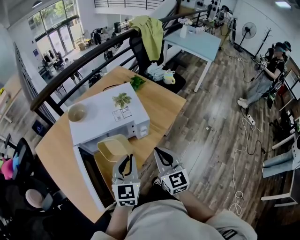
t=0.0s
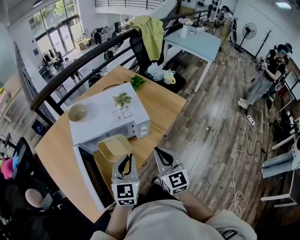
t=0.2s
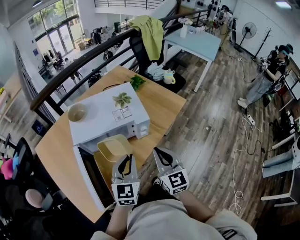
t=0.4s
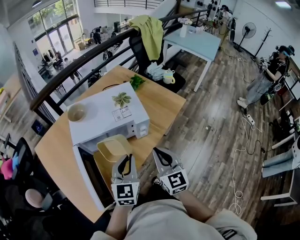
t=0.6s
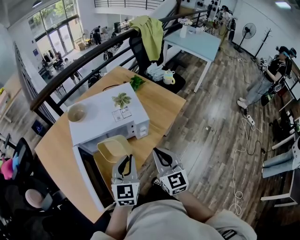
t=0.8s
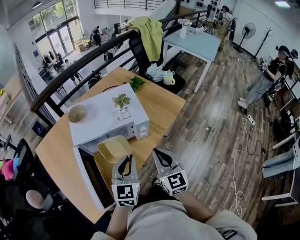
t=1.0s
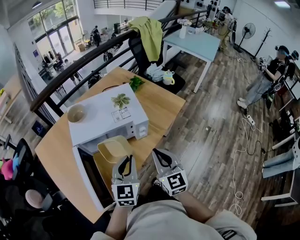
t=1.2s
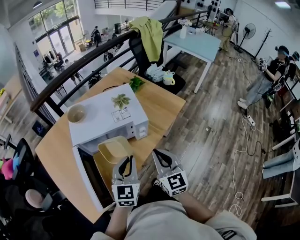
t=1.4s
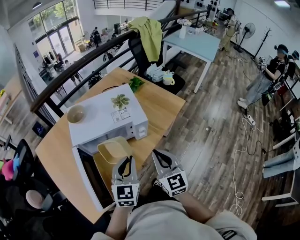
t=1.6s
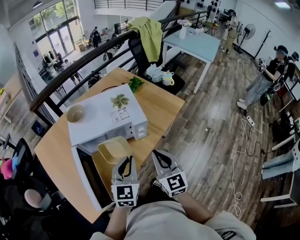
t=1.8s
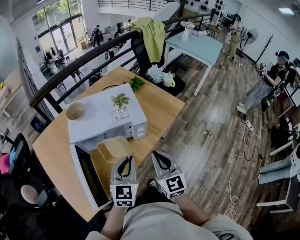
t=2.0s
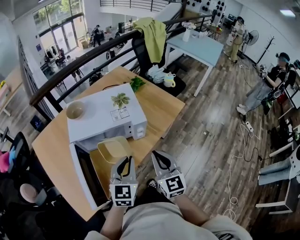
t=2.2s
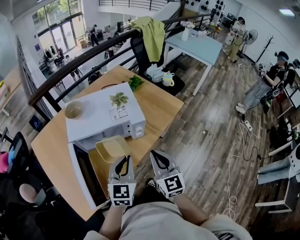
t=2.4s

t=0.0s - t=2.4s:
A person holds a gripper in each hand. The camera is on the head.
t=0.0s - t=1.2s: Both grippers stay about where they are.
t=1.2s - t=2.4s: The two grippers keep their place.

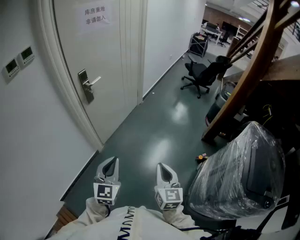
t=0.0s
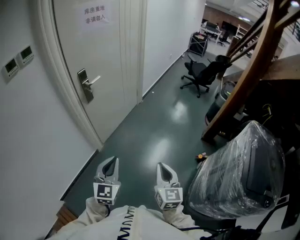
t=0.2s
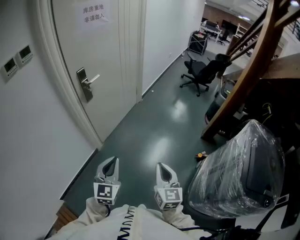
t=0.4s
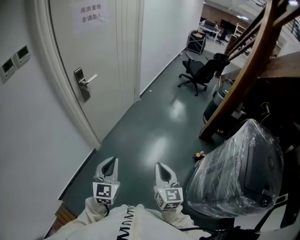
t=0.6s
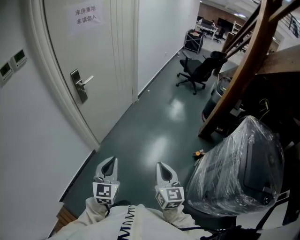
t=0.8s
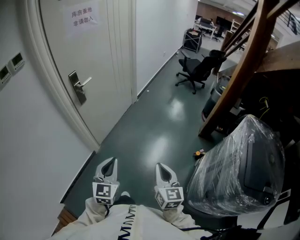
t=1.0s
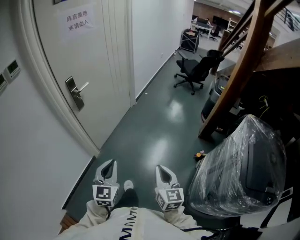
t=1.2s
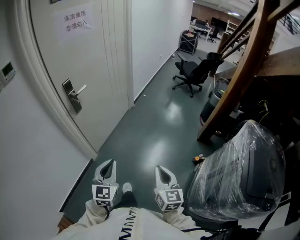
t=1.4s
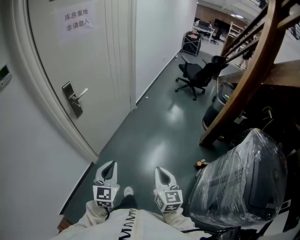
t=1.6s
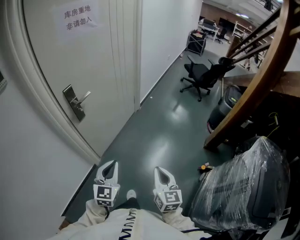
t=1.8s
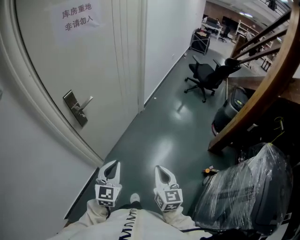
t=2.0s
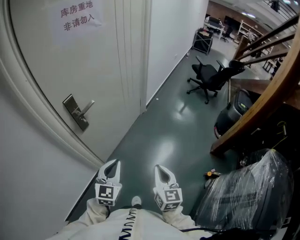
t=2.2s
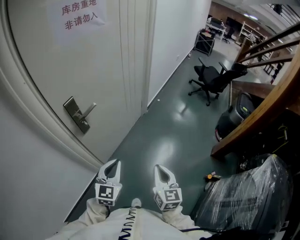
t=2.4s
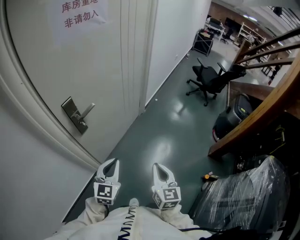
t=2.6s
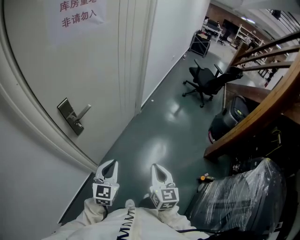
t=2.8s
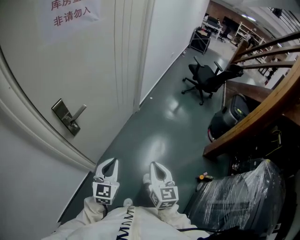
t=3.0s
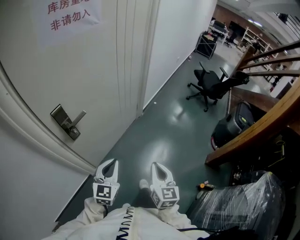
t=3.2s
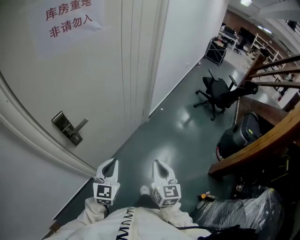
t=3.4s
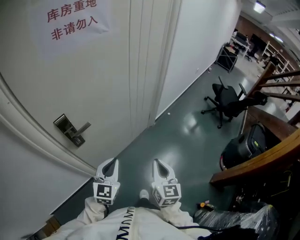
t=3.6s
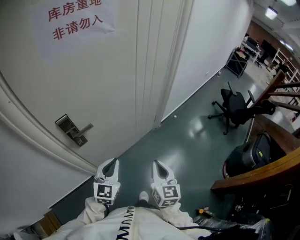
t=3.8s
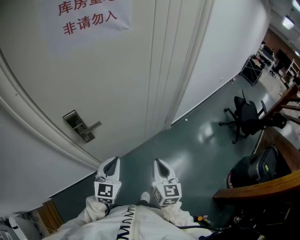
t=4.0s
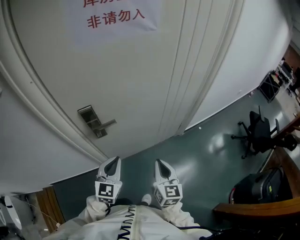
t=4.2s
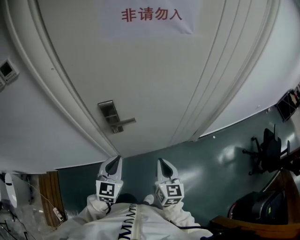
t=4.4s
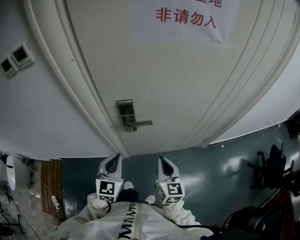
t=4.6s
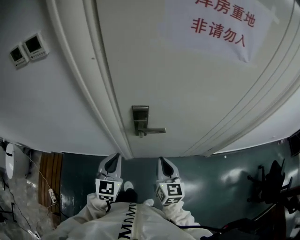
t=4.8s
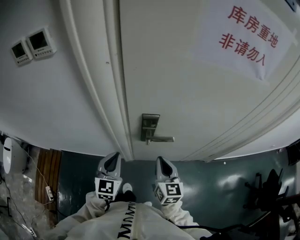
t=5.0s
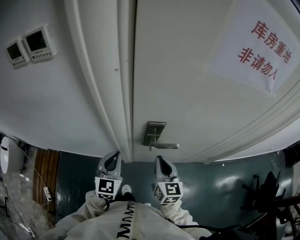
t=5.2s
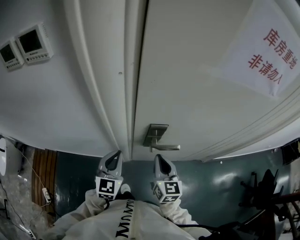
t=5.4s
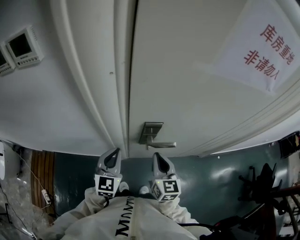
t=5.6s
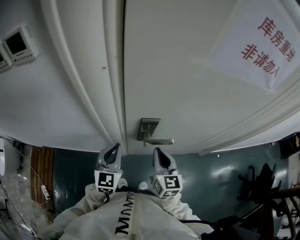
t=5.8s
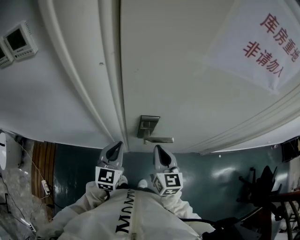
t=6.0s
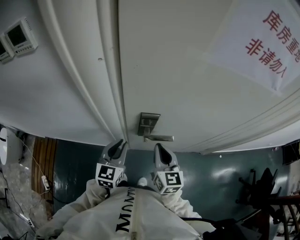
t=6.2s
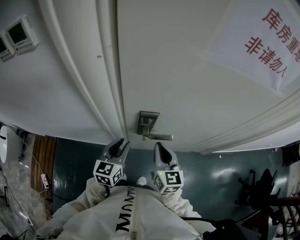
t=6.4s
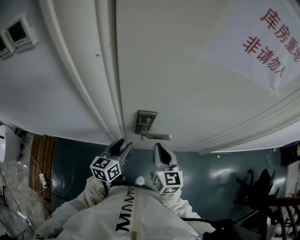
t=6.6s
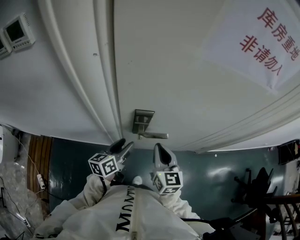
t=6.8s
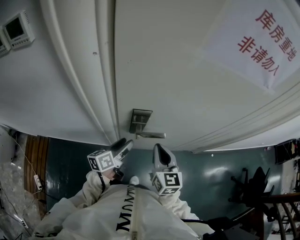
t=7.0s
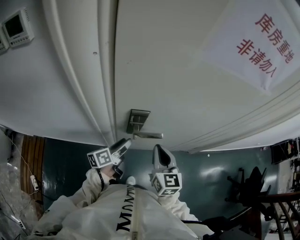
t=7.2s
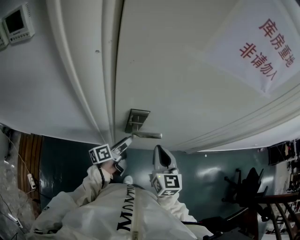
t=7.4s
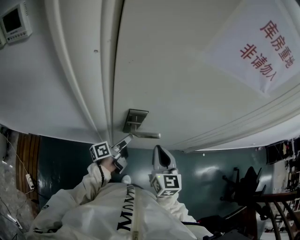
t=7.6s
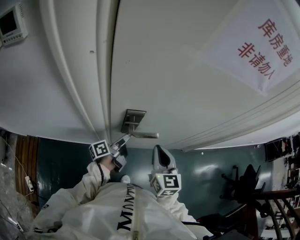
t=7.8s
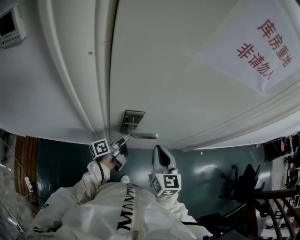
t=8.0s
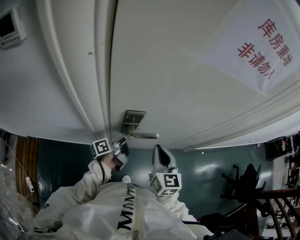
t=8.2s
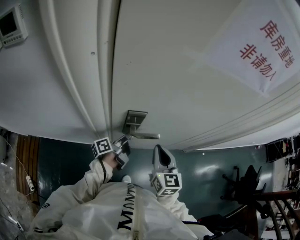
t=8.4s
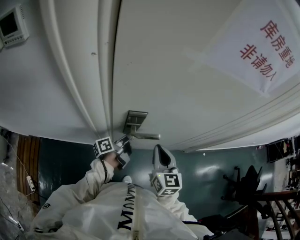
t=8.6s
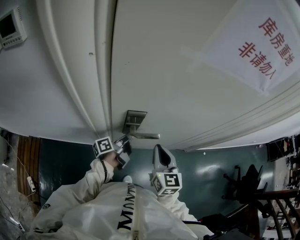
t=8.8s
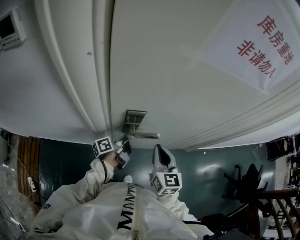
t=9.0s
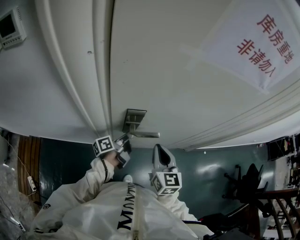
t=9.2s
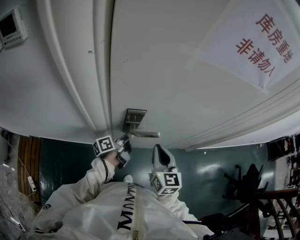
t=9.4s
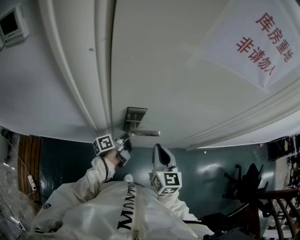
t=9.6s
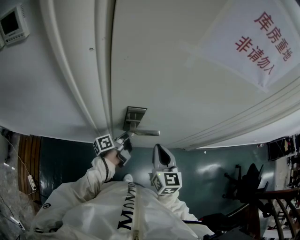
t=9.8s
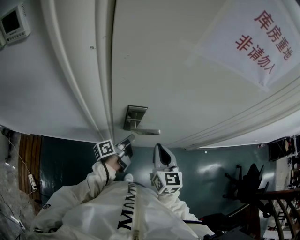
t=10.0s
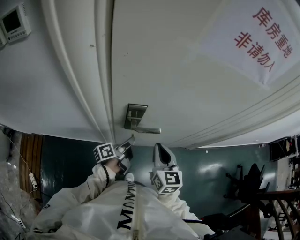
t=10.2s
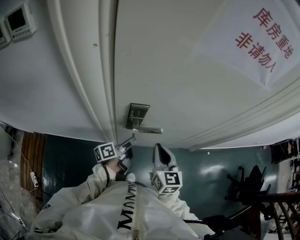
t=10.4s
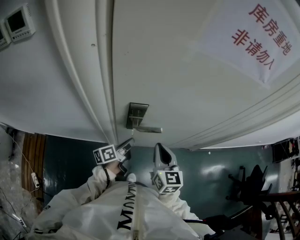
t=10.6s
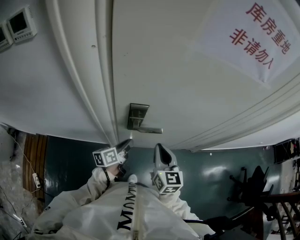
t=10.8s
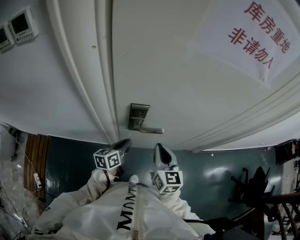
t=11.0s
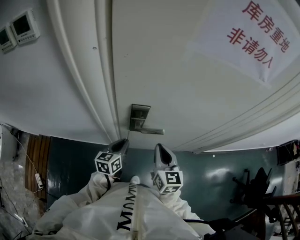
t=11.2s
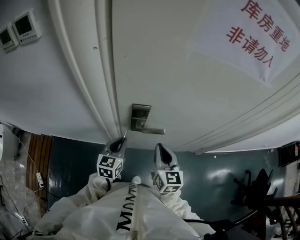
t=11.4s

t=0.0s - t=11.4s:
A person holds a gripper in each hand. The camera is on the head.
t=0.0s - t=1.4s: The grippers both shift forward by some 5 cm.
t=1.4s - t=2.8s: The left gripper heads forward, covering about 25 cm. Meanwhile the right gripper heads forward and to the left, covering about 30 cm.
t=2.8s - t=4.2s: The left gripper moves approximately 15 cm, and swivels some 30 degrees; the right gripper ends up about 25 cm from where it was, and turns by approximately 30 degrees.
t=4.2s - t=5.6s: The right gripper ends up roughly 30 cm from where it was, and swivels some 20 degrees, while the left gripper ends up approximately 25 cm from where it was, and turns by about 20 degrees.
t=5.6s - t=7.2s: The right gripper moves to the right, roughly 5 cm, while the left gripper goes some 15 cm to the right and downward, rotates around the line of its fingers by approximately 70 degrees, counterclockwise from behind, and opens its fingers.
t=7.2s - t=8.6s: The left gripper ends up some 5 cm from where it was, turns by approximately 20 degrees, and closes up.
t=8.6s - t=10.0s: The grippers move only a little.
t=10.0s - t=11.4s: The left gripper moves to the left and upward, approximately 10 cm, and rolls clockwise, seen from behind, by some 70 degrees.

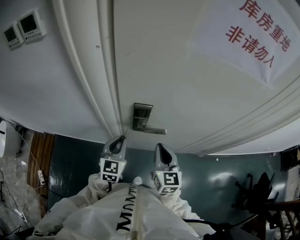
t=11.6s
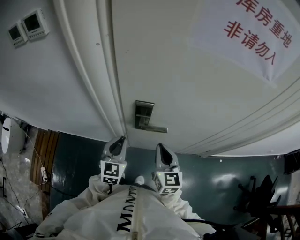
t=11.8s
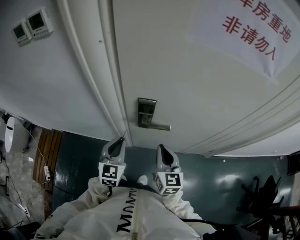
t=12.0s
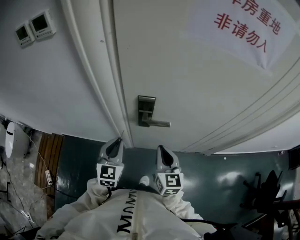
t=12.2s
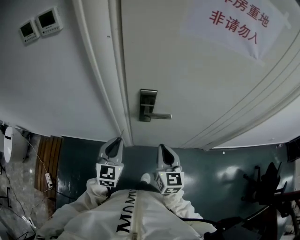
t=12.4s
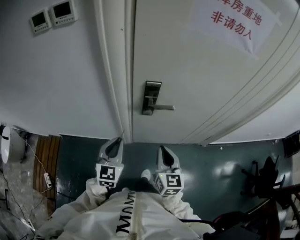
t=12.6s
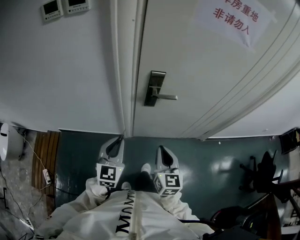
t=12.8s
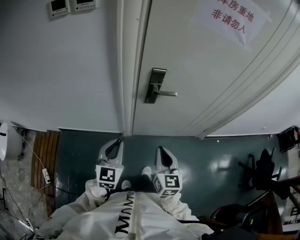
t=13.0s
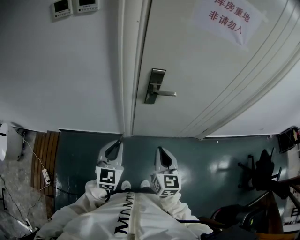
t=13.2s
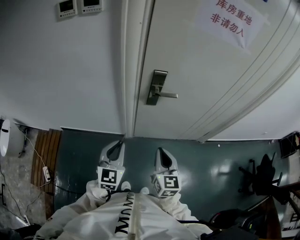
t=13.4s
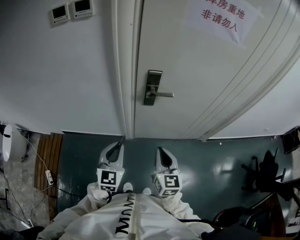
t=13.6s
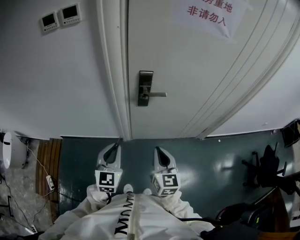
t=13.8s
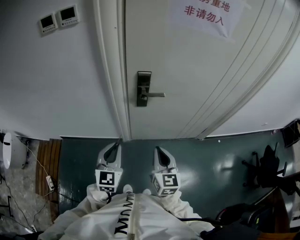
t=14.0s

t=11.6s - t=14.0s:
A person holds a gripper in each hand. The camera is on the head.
t=11.6s - t=12.8s: The left gripper travels backward and to the left by approximately 20 cm; the right gripper goes about 20 cm backward.
t=12.8s - t=14.0s: The left gripper is displaced backward by roughly 5 cm.

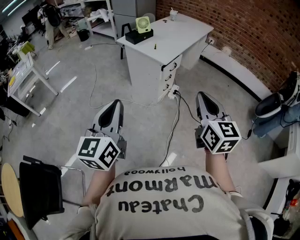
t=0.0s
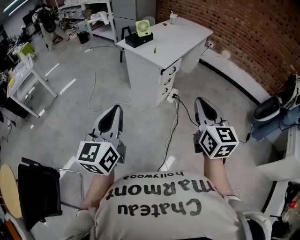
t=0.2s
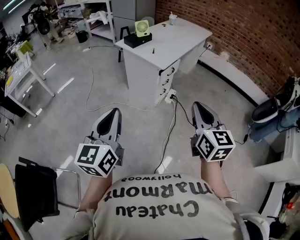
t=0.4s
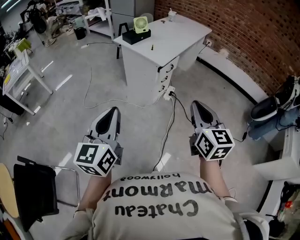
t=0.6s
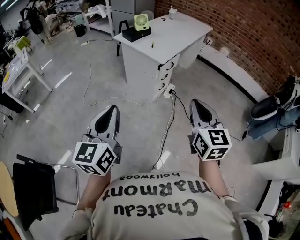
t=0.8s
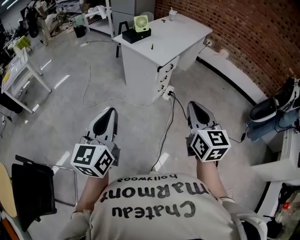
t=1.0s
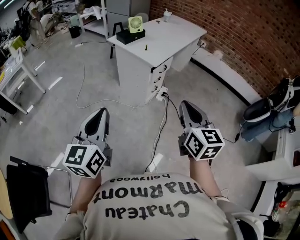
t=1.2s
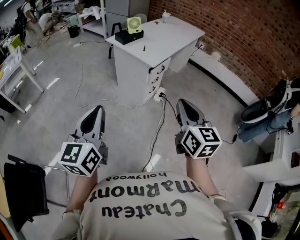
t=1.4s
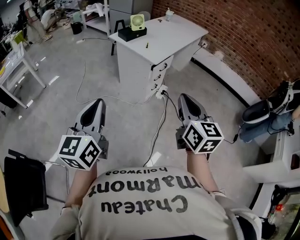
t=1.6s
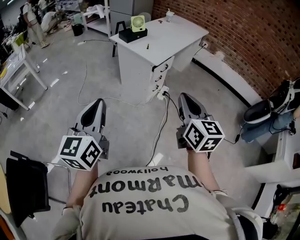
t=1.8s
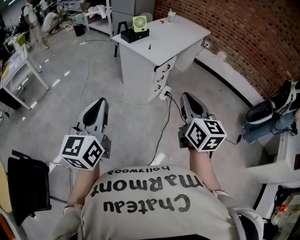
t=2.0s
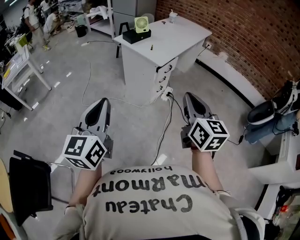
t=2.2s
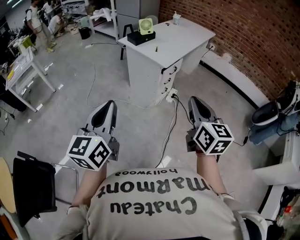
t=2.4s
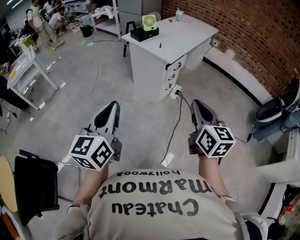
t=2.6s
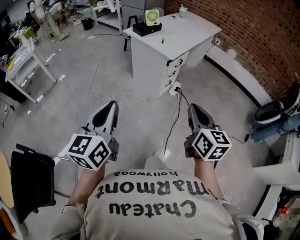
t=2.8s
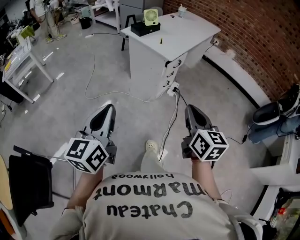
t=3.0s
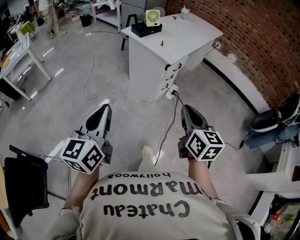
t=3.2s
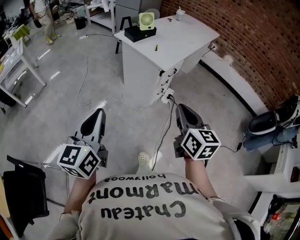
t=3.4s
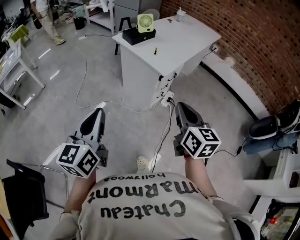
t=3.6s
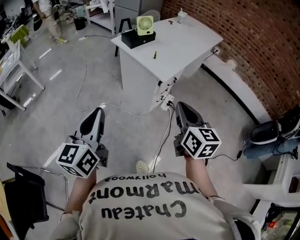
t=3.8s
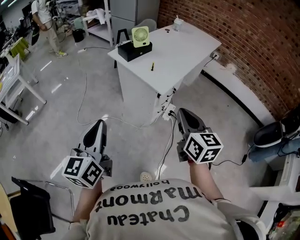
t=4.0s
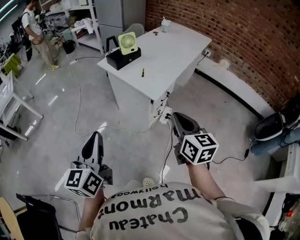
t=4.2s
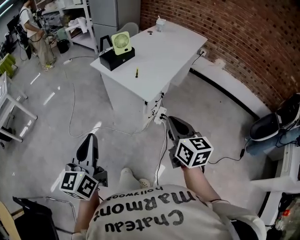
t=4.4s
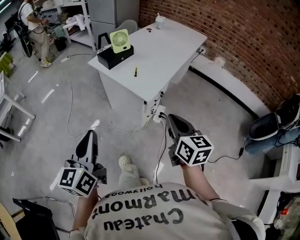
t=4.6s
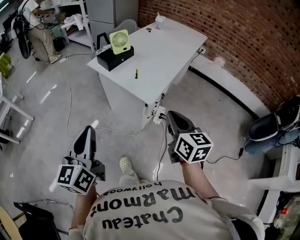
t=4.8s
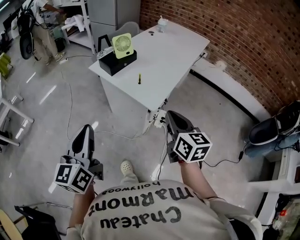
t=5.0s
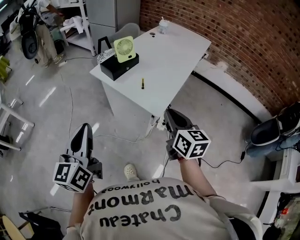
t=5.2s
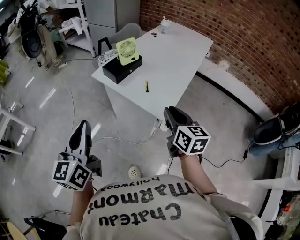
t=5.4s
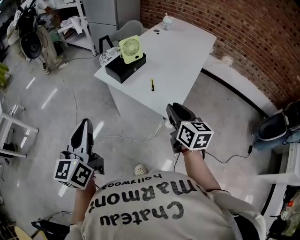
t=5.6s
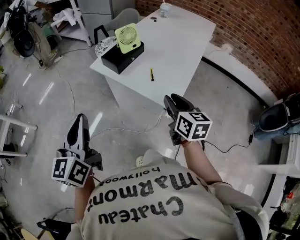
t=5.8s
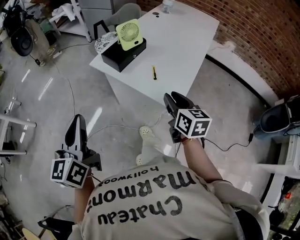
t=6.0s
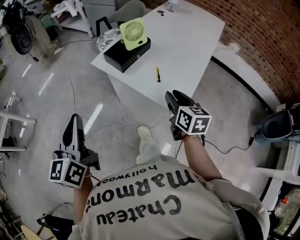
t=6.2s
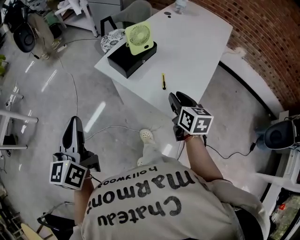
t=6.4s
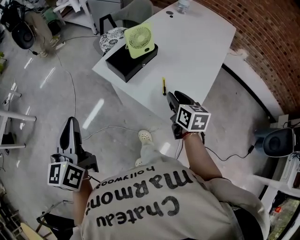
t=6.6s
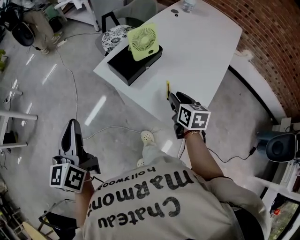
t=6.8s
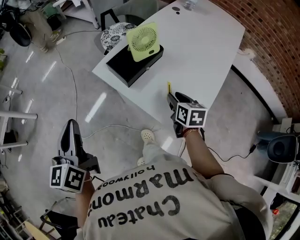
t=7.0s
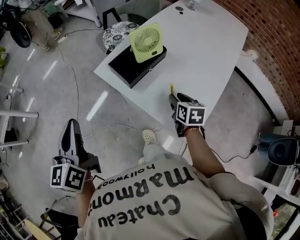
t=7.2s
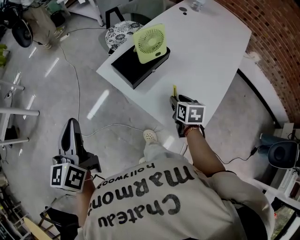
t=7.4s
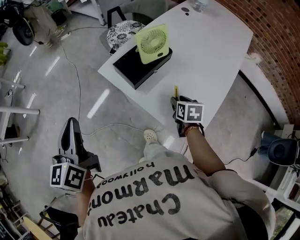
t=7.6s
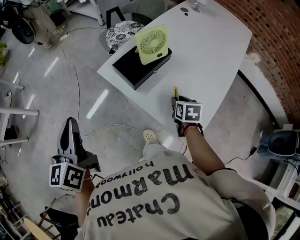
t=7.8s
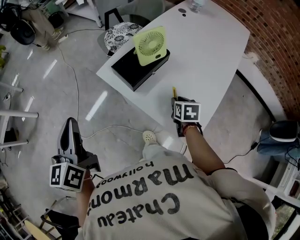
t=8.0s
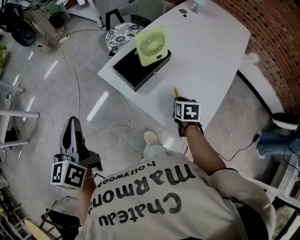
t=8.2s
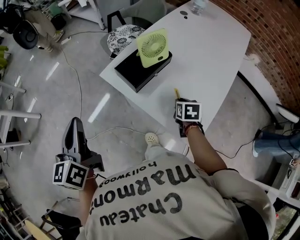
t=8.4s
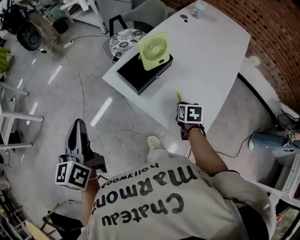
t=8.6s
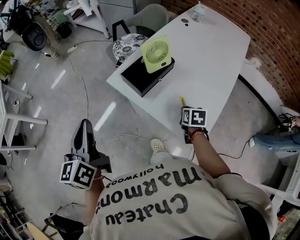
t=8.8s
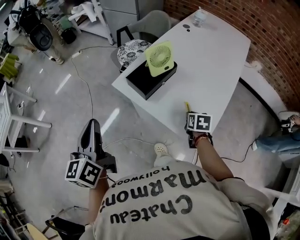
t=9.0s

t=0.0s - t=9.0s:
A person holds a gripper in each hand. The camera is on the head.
t=0.0s - t=1.6s: The grippers move only a little.
t=1.6s - t=3.0s: The two grippers go some 5 cm downward.
t=3.0s - t=4.4s: The grippers both shift forward by roughly 30 cm.
t=4.4s - t=6.0s: The left gripper shifts about 30 cm forward and to the left. The right gripper travels forward by roughly 25 cm, and opens up.
t=6.0s - t=7.6s: The right gripper moves forward and downward, some 25 cm, and changes its angle by roughly 30 degrees. Meanwhile the left gripper moves forward, approximately 20 cm.
t=7.6s - t=9.0s: The right gripper moves about 5 cm, and closes up.
